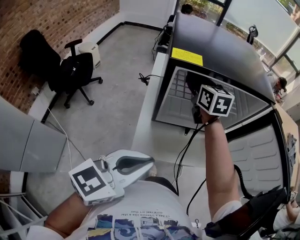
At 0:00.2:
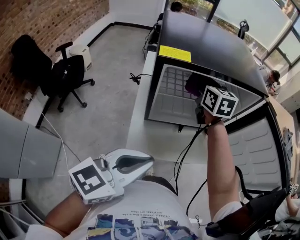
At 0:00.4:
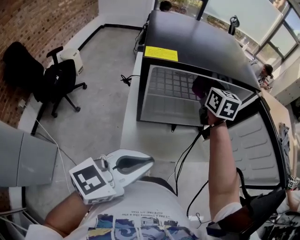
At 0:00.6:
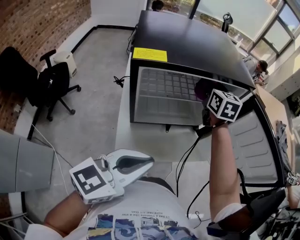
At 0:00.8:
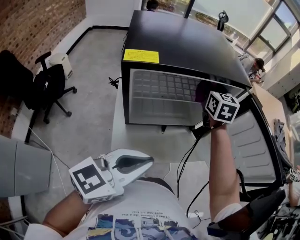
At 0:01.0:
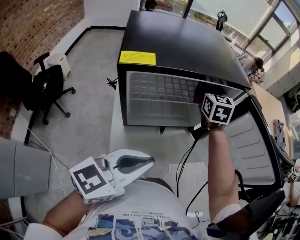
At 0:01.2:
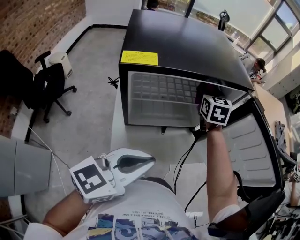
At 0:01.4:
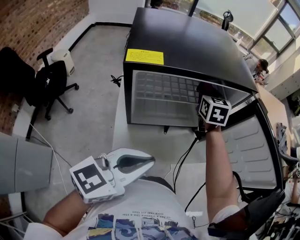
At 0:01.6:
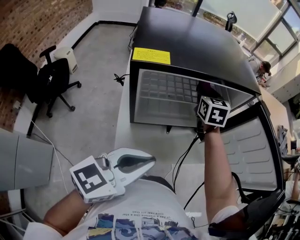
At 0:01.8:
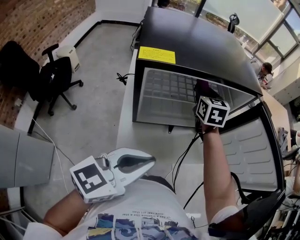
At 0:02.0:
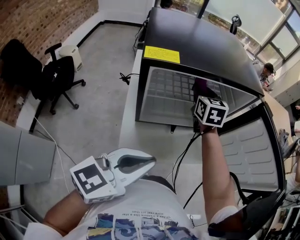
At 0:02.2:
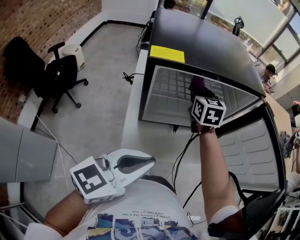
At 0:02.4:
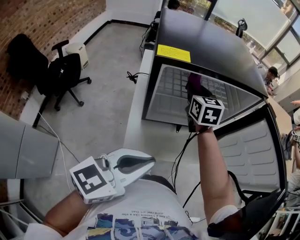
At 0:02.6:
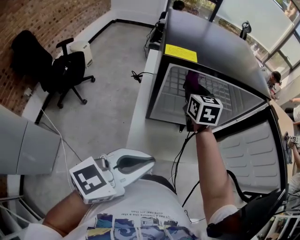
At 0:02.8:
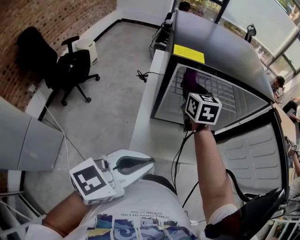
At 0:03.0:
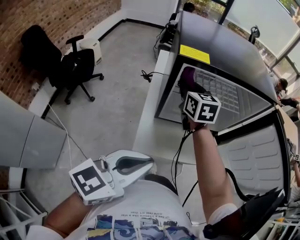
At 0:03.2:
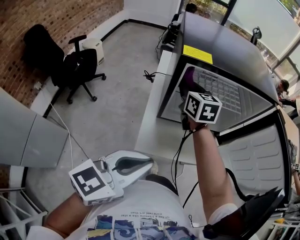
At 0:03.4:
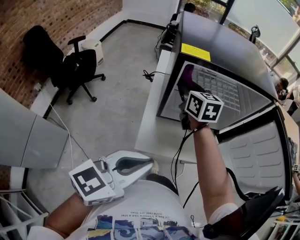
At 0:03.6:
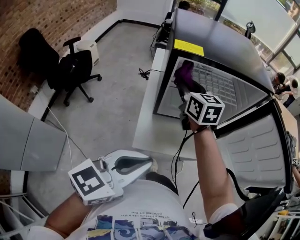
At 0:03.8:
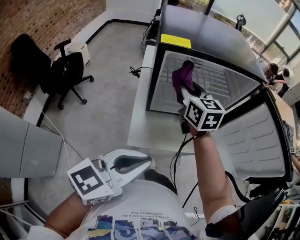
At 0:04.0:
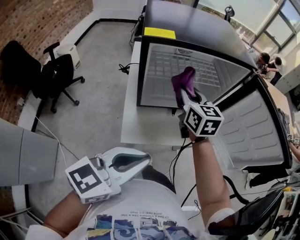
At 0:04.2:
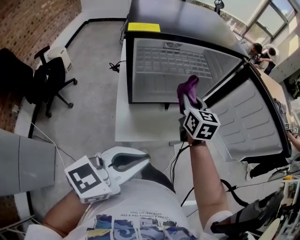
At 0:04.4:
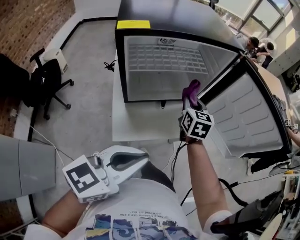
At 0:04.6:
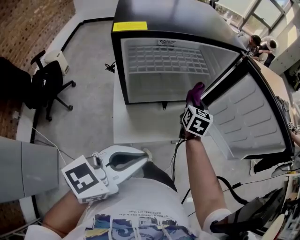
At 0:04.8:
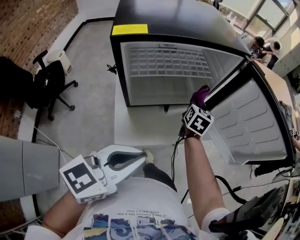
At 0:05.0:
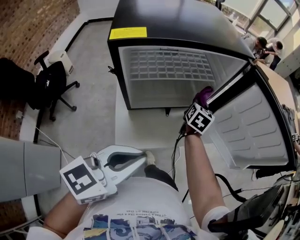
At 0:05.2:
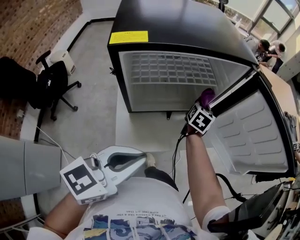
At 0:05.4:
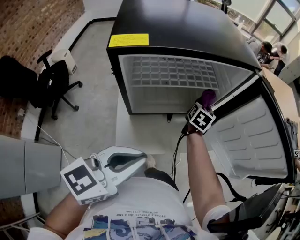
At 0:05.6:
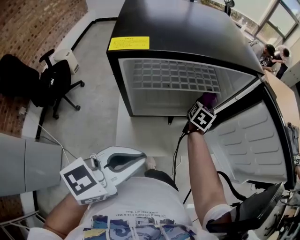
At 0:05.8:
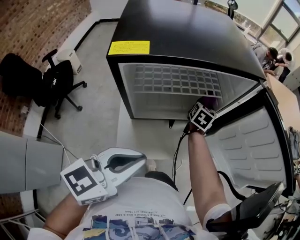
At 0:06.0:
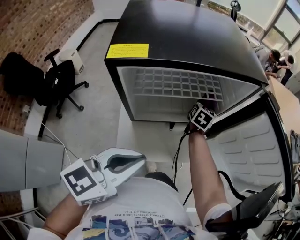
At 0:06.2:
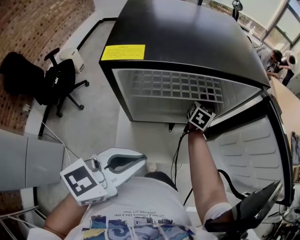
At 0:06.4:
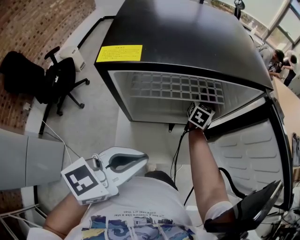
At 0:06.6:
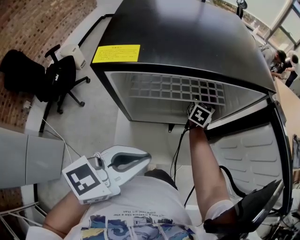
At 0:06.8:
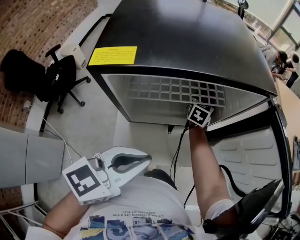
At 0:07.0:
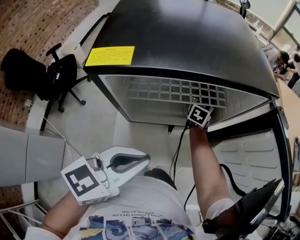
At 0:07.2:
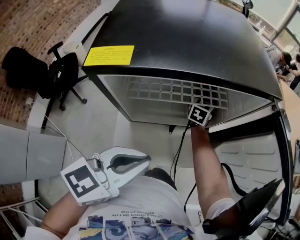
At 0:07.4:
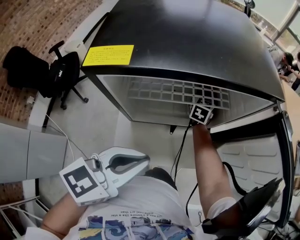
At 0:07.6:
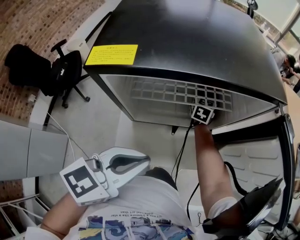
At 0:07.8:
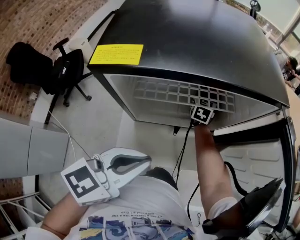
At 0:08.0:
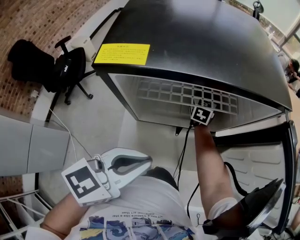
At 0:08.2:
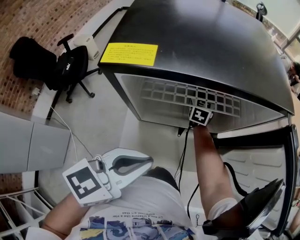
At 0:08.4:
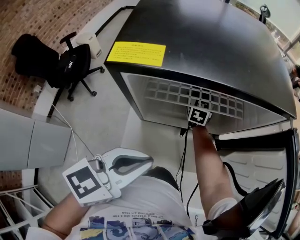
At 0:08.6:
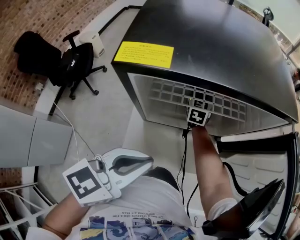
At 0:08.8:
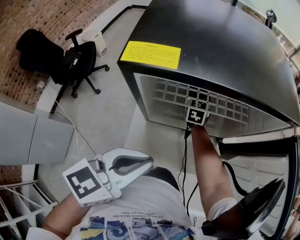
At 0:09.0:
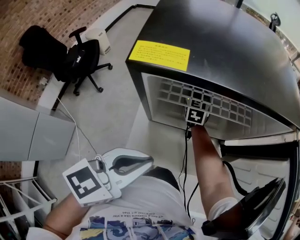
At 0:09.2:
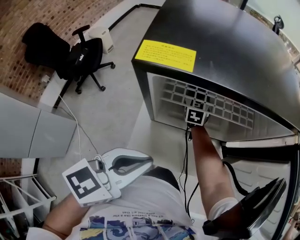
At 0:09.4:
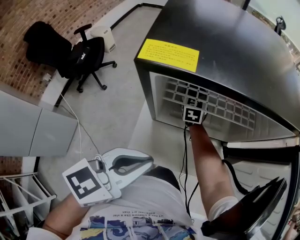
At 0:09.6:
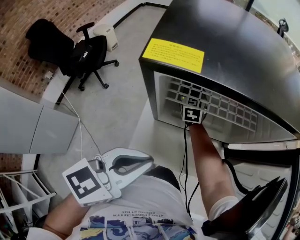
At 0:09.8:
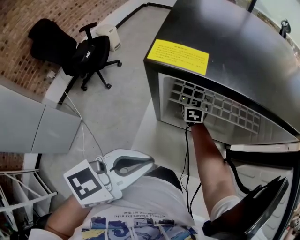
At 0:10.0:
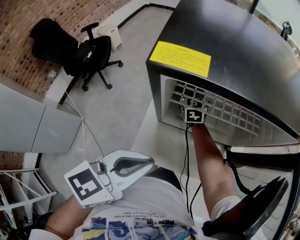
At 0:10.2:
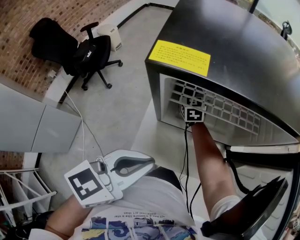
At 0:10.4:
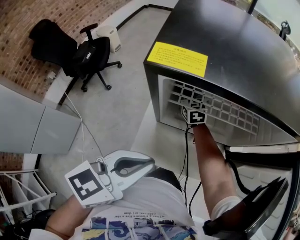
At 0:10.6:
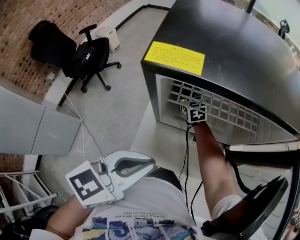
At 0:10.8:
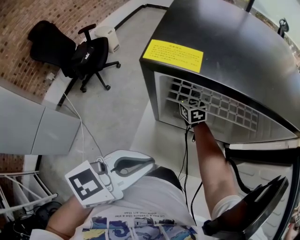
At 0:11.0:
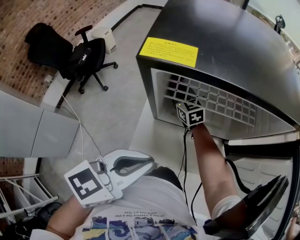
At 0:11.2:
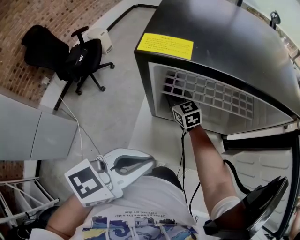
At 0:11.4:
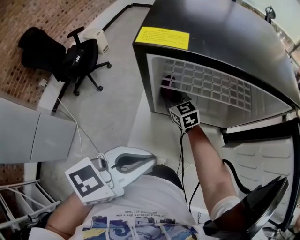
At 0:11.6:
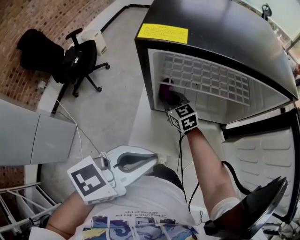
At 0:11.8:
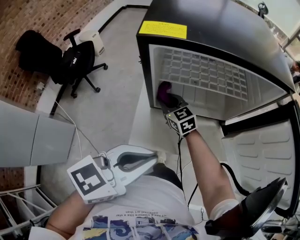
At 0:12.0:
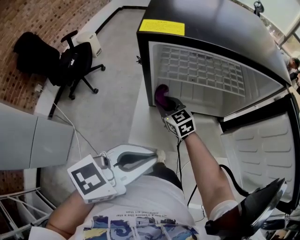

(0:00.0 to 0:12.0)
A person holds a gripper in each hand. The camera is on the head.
0:00.0 - 0:01.6: The right gripper goes about 15 cm to the right and forward, and changes its angle by roughly 20 degrees; the left gripper shifts roughly 5 cm forward.
0:01.6 - 0:03.0: The left gripper heads backward and to the left, covering approximately 10 cm. The right gripper moves to the left and backward, some 20 cm, and turns by approximately 20 degrees.
0:03.0 - 0:04.4: The left gripper changes place by roughly 5 cm. Meanwhile the right gripper ends up about 25 cm from where it was, and turns by approximately 30 degrees.
0:04.4 - 0:06.0: The left gripper moves forward and to the left, about 10 cm. Meanwhile the right gripper goes some 20 cm forward and downward.
0:06.0 - 0:07.6: The right gripper heads to the left, covering roughly 10 cm, and swivels some 20 degrees.
0:07.6 - 0:09.0: The right gripper heads to the left and backward, covering approximately 15 cm.
0:09.0 - 0:10.4: The right gripper goes about 10 cm to the left, and swivels some 20 degrees.
0:10.4 - 0:12.0: The right gripper goes some 20 cm backward. Meanwhile the left gripper goes approximately 5 cm backward.

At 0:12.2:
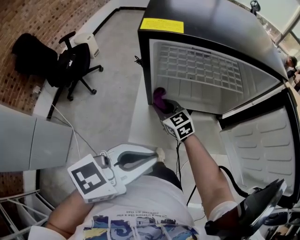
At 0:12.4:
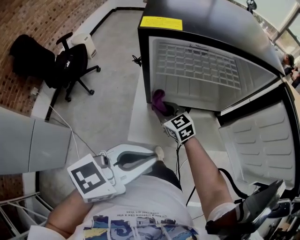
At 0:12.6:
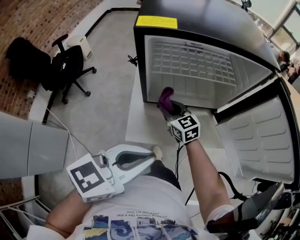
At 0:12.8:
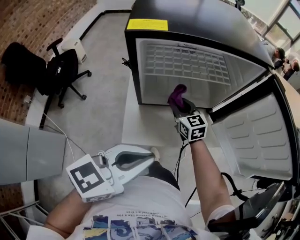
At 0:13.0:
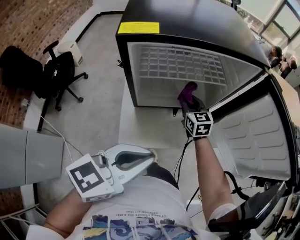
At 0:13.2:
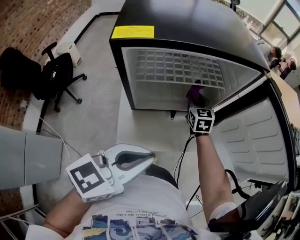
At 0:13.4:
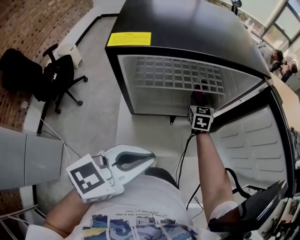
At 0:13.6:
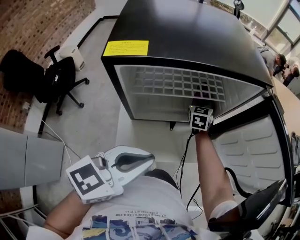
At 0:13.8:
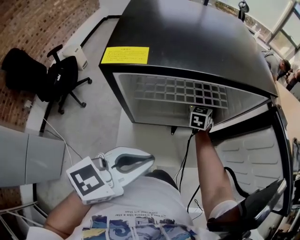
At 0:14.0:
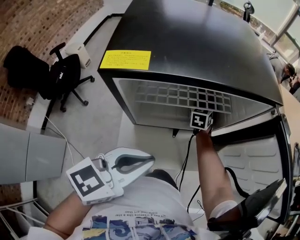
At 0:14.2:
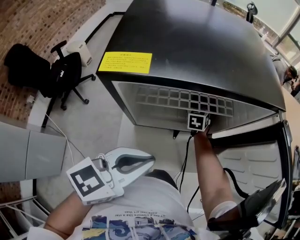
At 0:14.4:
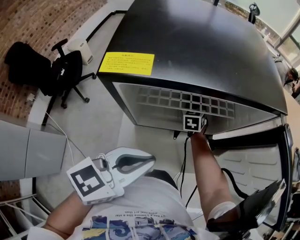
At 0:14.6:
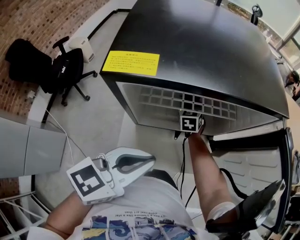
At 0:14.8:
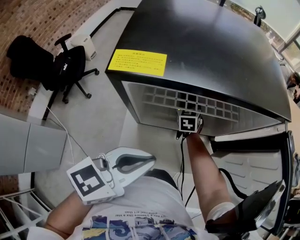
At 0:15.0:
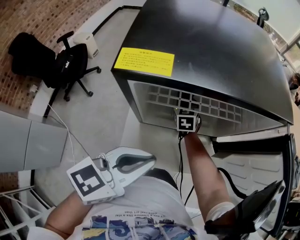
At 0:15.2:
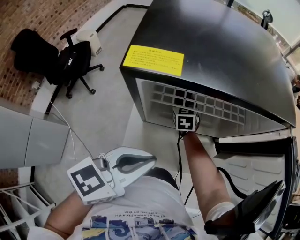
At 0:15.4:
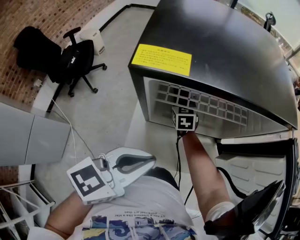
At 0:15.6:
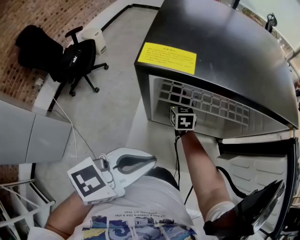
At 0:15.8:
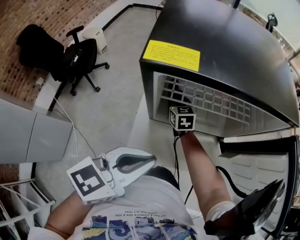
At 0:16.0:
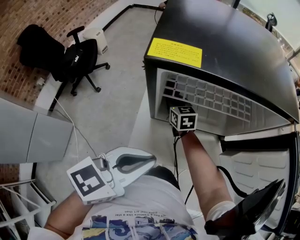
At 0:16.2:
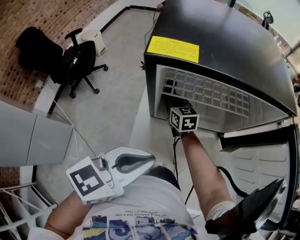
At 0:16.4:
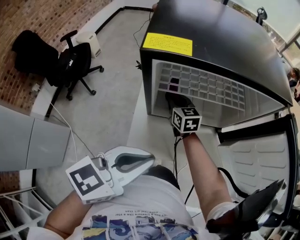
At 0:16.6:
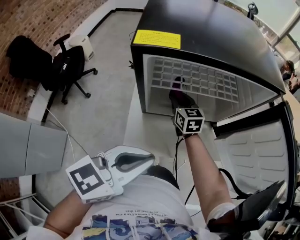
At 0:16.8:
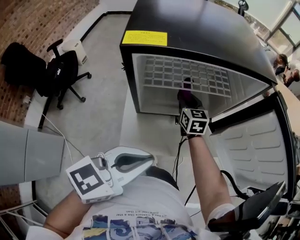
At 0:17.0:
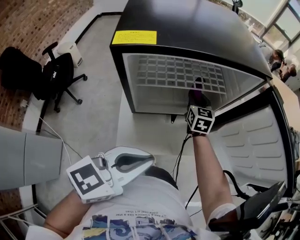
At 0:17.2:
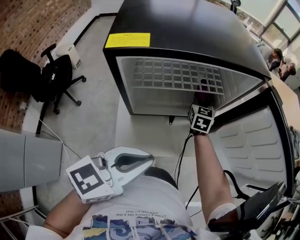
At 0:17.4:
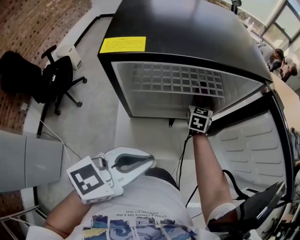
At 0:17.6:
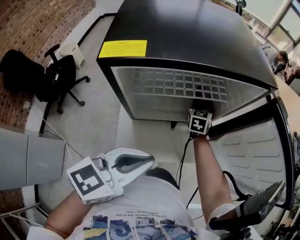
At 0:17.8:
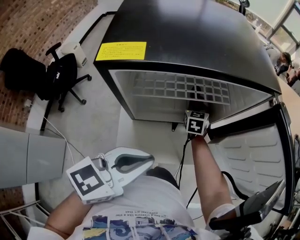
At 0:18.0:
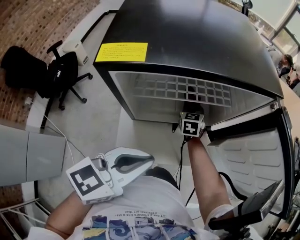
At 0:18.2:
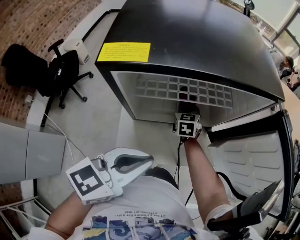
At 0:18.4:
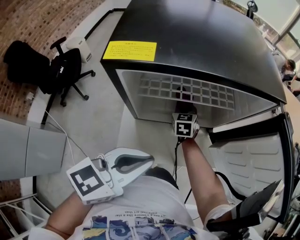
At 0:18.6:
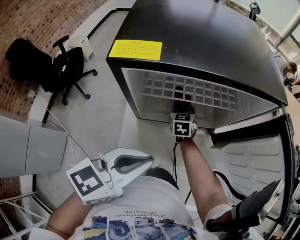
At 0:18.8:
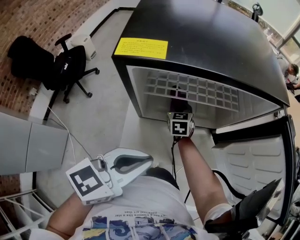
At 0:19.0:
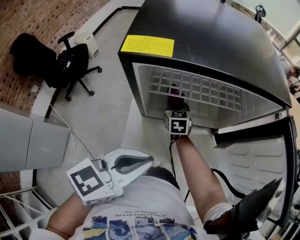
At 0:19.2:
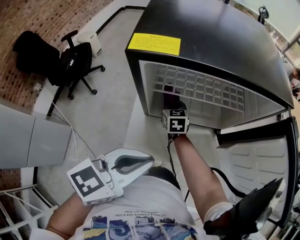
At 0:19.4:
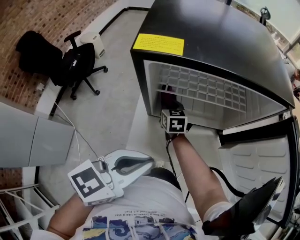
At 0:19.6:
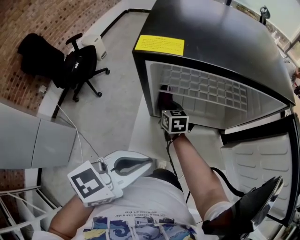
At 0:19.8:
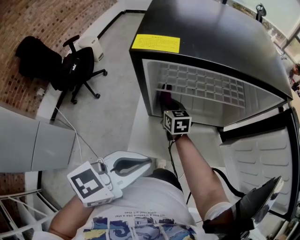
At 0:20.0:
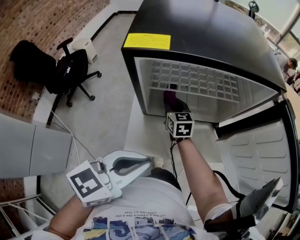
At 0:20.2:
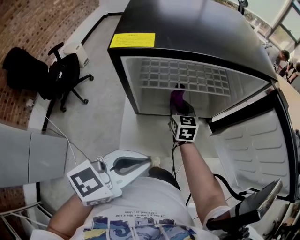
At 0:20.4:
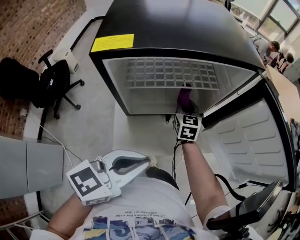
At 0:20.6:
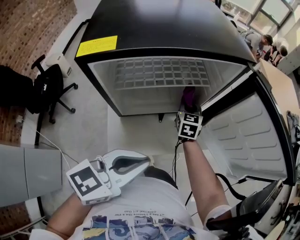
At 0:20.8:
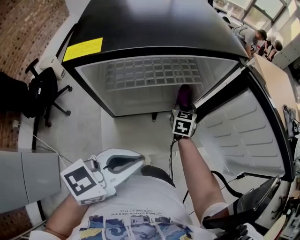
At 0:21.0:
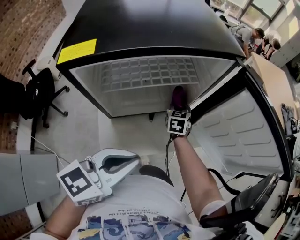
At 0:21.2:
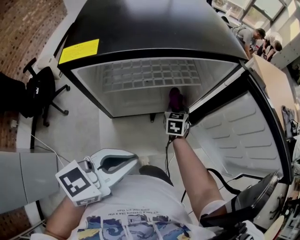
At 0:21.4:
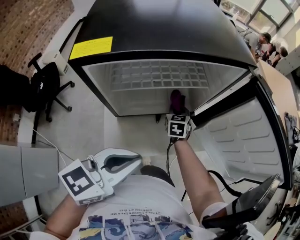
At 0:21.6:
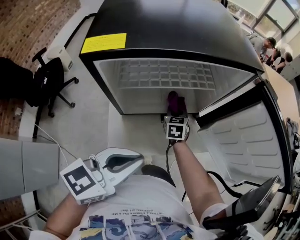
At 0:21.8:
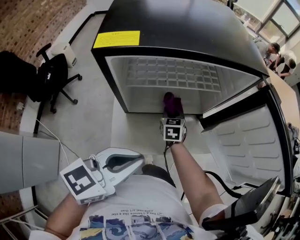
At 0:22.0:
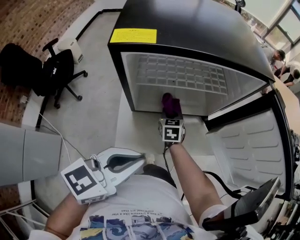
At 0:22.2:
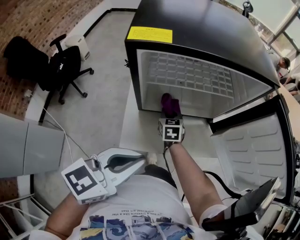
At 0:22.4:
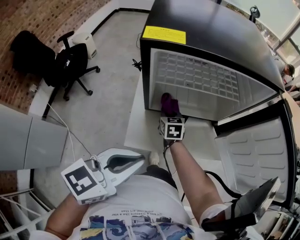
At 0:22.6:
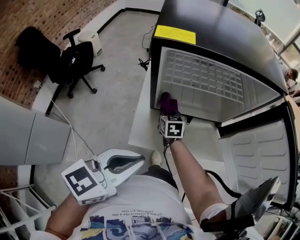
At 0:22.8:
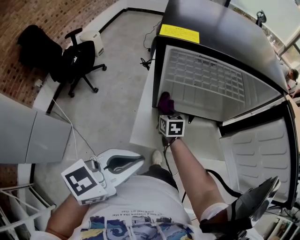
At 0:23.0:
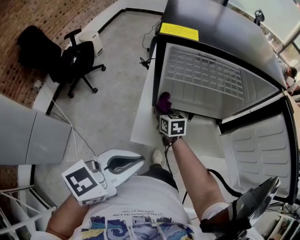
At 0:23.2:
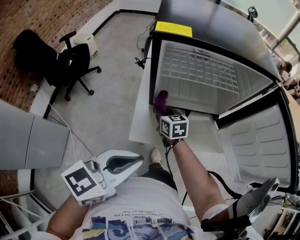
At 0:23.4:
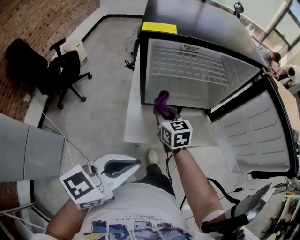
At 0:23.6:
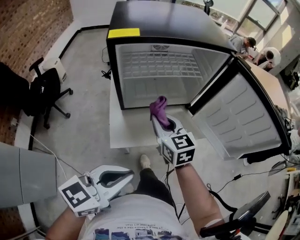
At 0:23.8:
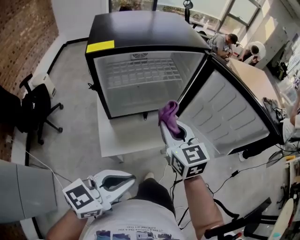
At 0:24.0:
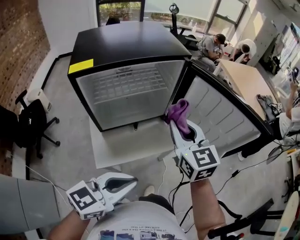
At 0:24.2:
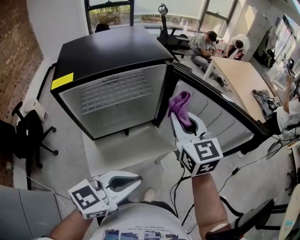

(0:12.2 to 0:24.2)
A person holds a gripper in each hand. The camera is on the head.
0:12.2 - 0:13.8: The right gripper shifts by roughly 30 cm, and turns by about 50 degrees. The left gripper ends up approximately 10 cm from where it was.
0:13.8 - 0:15.2: The right gripper goes some 15 cm to the left and backward, and rotates some 20 degrees.
0:15.2 - 0:16.6: The right gripper goes approximately 10 cm backward and upward, and goes to the left and returns, about 5 cm each way; the left gripper heads backward, covering some 5 cm.
0:16.6 - 0:18.2: The left gripper changes place by some 5 cm, while the right gripper is displaced forward, to the right and downward by roughly 10 cm, and turns by some 20 degrees.
0:18.2 - 0:19.8: The right gripper travels to the left and backward by approximately 15 cm, and swivels roughly 30 degrees; the left gripper shifts by approximately 5 cm.
0:19.8 - 0:21.2: The right gripper changes place by approximately 25 cm, and rotates some 40 degrees, while the left gripper ends up roughly 5 cm from where it was.
0:21.2 - 0:22.6: The left gripper changes place by some 10 cm. The right gripper ends up about 25 cm from where it was, and swivels roughly 30 degrees.
0:22.6 - 0:24.2: The right gripper moves upward, some 35 cm, and rotates about 40 degrees. The left gripper ends up roughly 15 cm from where it was, and rotates roughly 30 degrees.
